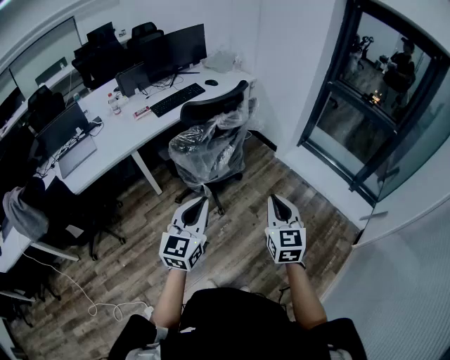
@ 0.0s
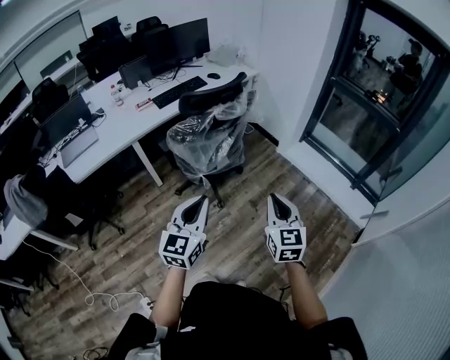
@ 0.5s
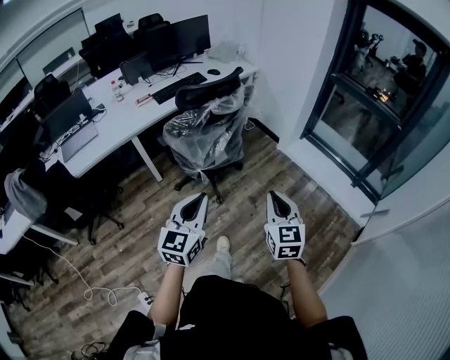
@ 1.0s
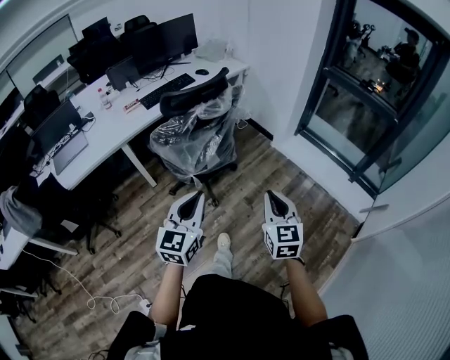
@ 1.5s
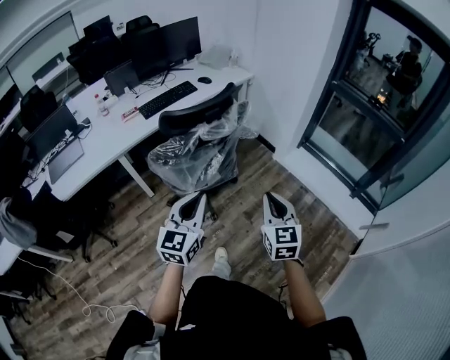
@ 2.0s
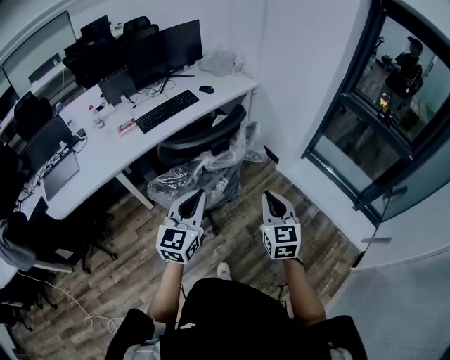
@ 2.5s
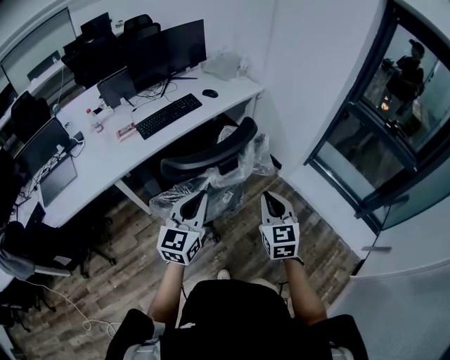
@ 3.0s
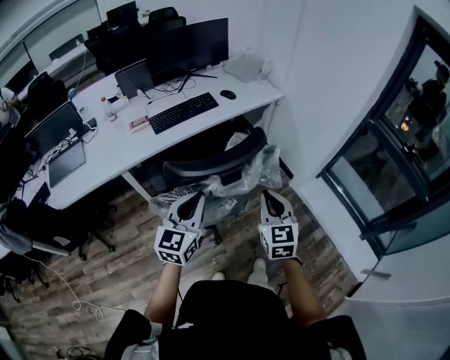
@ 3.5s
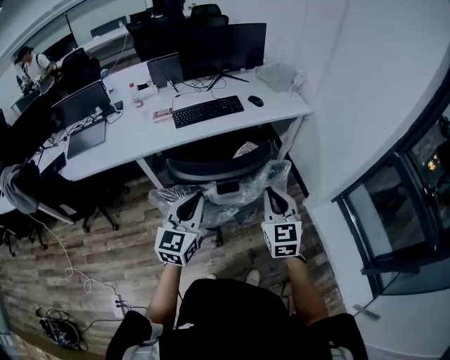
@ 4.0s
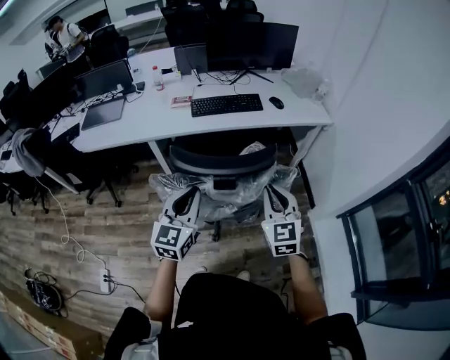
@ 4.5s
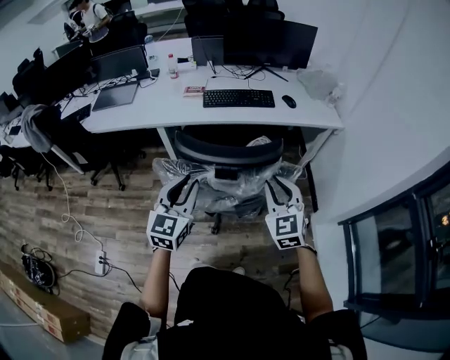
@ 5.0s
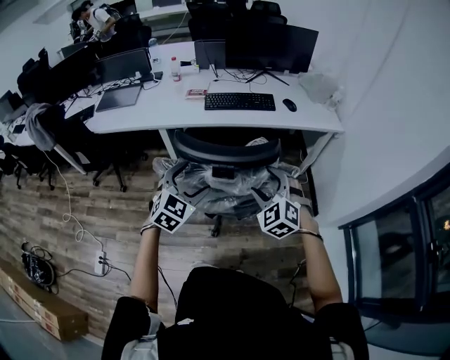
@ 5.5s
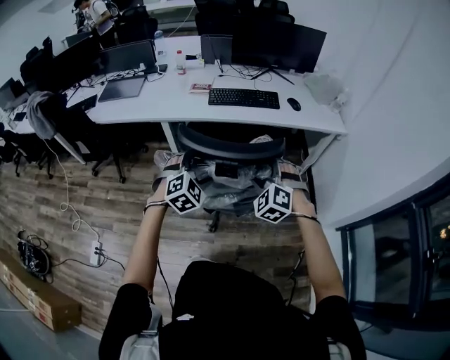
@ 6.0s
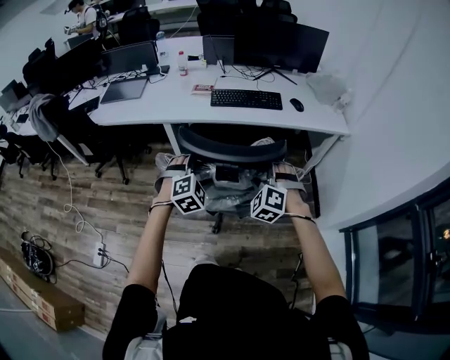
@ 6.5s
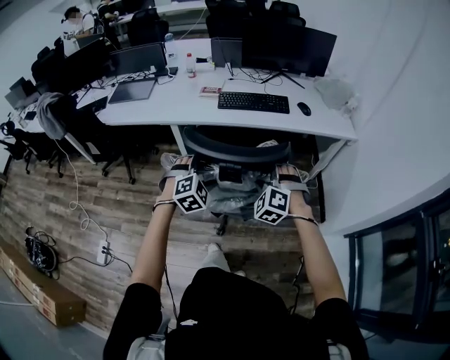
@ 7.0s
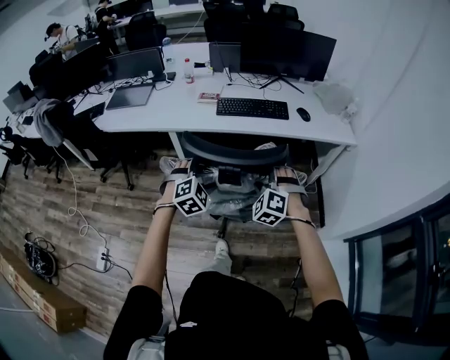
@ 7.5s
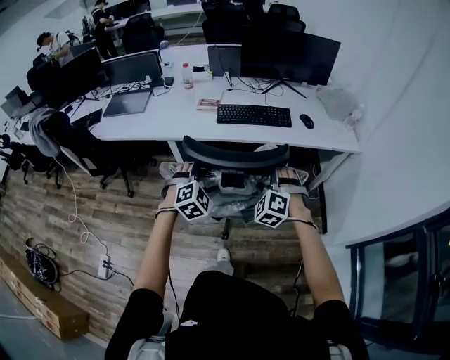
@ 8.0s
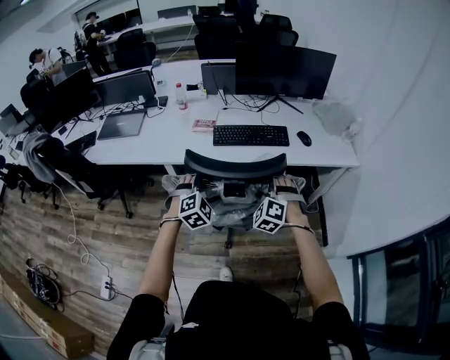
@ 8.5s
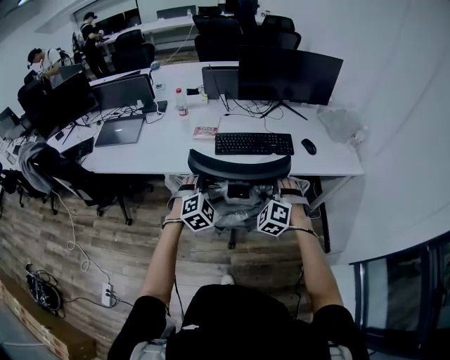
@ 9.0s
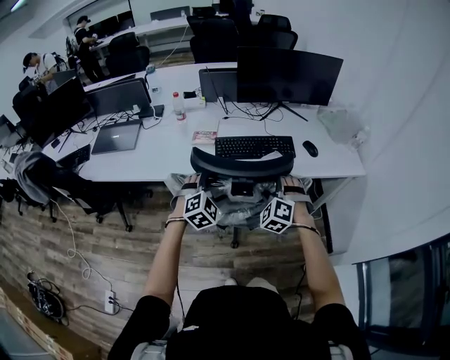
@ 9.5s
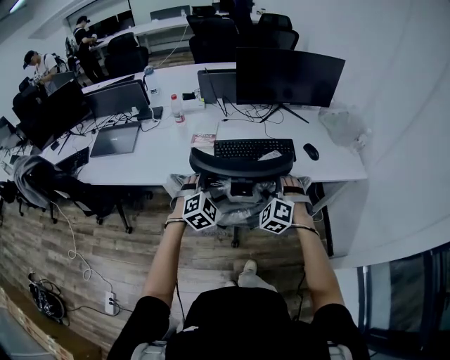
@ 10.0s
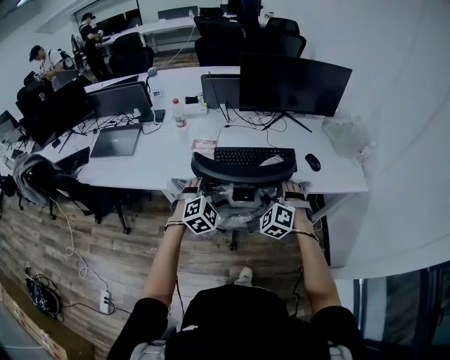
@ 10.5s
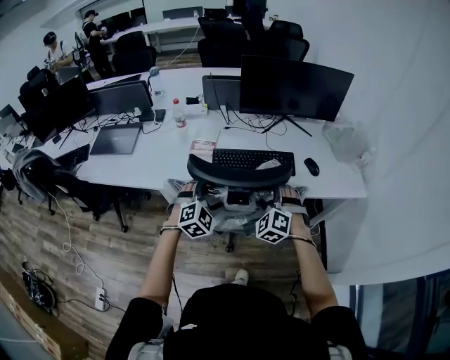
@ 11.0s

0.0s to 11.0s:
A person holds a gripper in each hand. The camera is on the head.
0.0s to 2.0s: The right gripper travels forward by about 15 cm. The left gripper goes approximately 15 cm forward and to the right.
2.0s to 3.5s: The grippers both shift forward by approximately 25 cm.
3.5s to 5.5s: The left gripper is displaced downward by about 5 cm, changes its angle by approximately 40 degrees, and opens up; the right gripper moves about 10 cm, changes its angle by some 60 degrees, and opens.
5.5s to 7.5s: The left gripper goes some 10 cm forward and downward, and swivels roughly 20 degrees; the right gripper shifts some 10 cm forward.
7.5s to 9.0s: The grippers both shift forward by roughly 20 cm.
9.0s to 11.0s: The grippers both shift forward by some 10 cm.

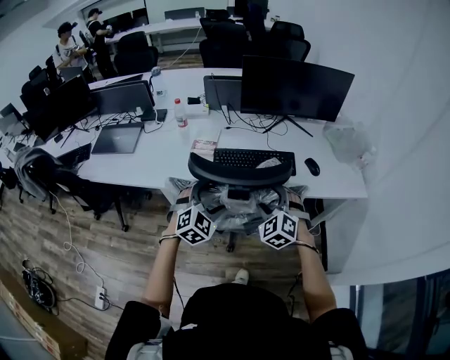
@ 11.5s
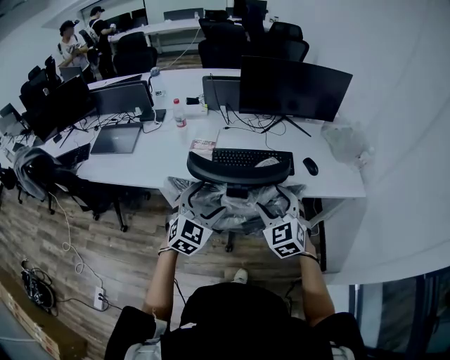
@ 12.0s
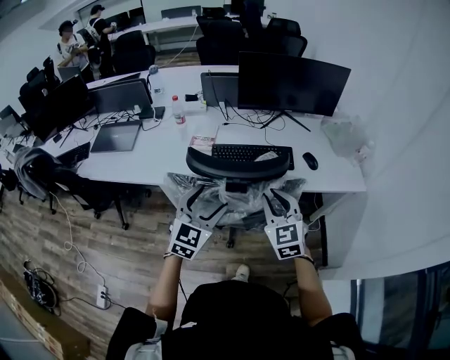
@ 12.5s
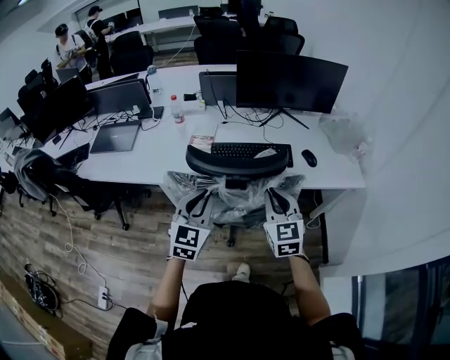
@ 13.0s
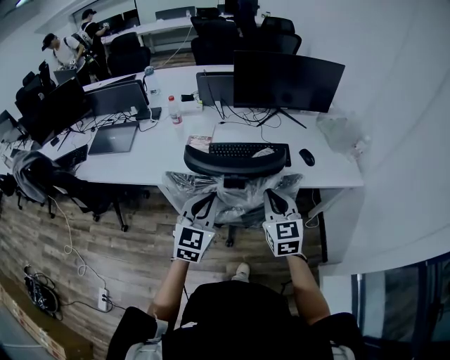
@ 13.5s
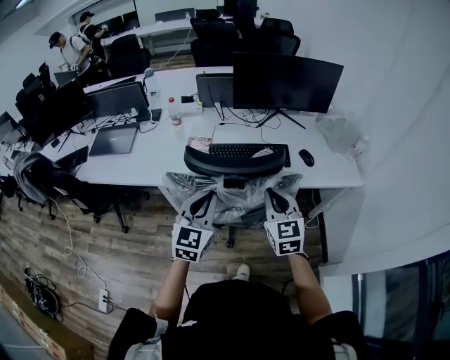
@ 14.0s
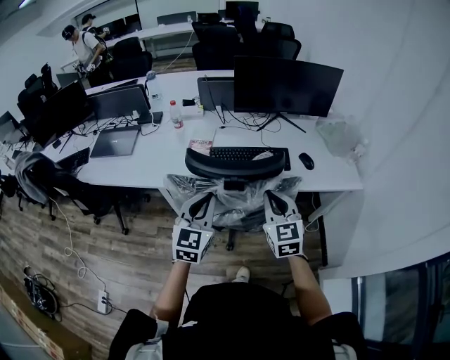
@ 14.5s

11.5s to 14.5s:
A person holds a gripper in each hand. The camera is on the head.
11.5s to 13.0s: The right gripper heads upward, covering some 5 cm, turns by some 40 degrees, and closes; the left gripper heads upward and backward, covering some 10 cm, turns by some 30 degrees, and closes.
13.0s to 14.5s: The grippers move only a little.

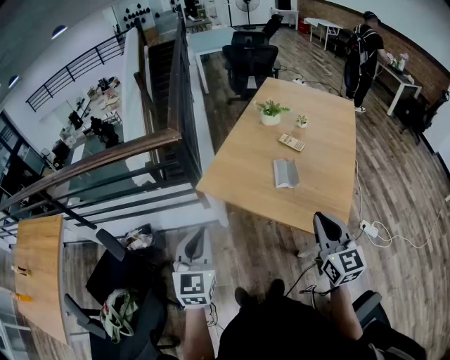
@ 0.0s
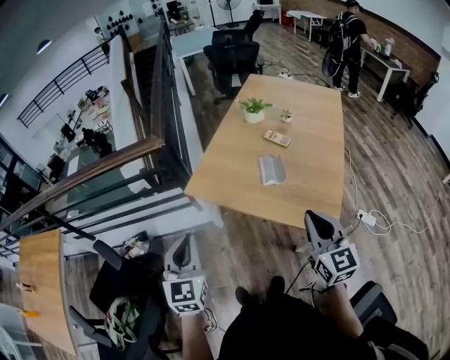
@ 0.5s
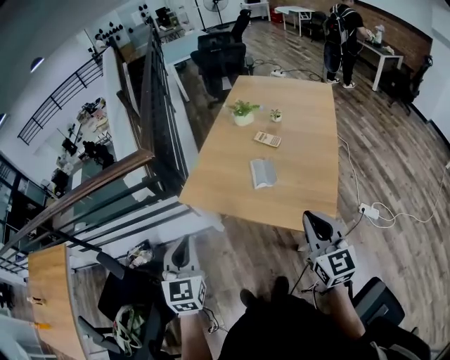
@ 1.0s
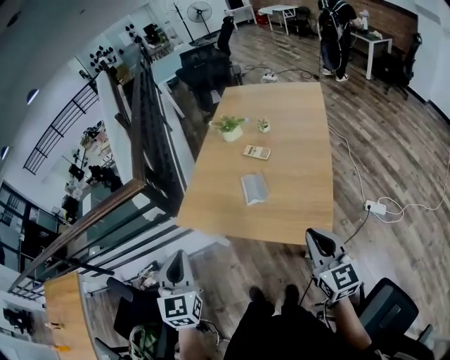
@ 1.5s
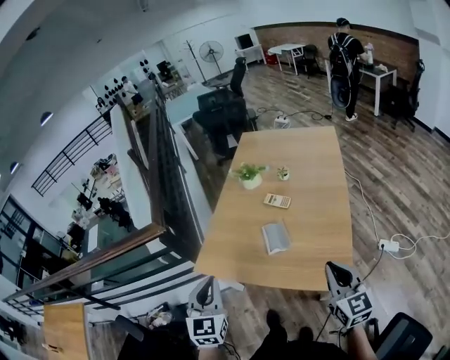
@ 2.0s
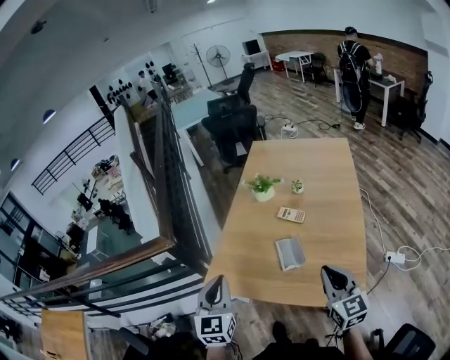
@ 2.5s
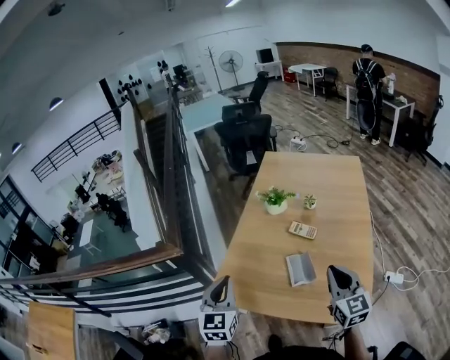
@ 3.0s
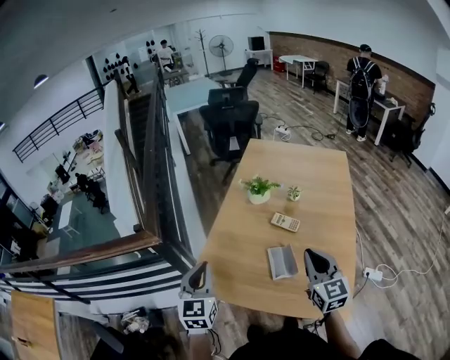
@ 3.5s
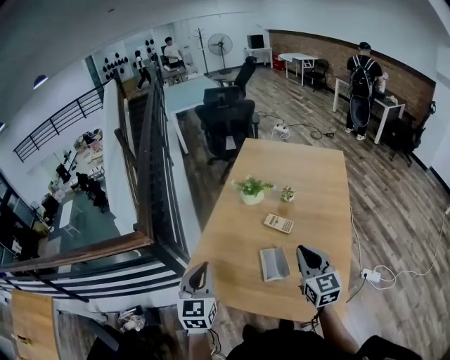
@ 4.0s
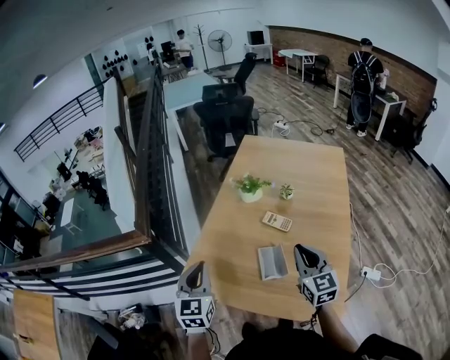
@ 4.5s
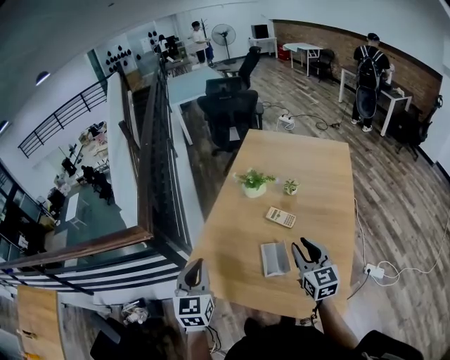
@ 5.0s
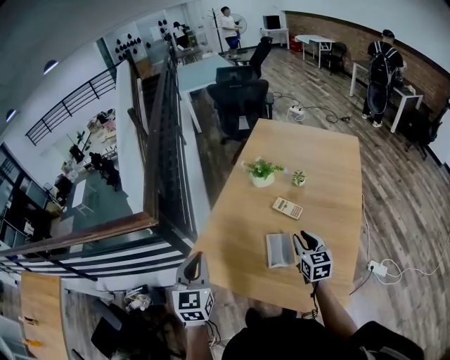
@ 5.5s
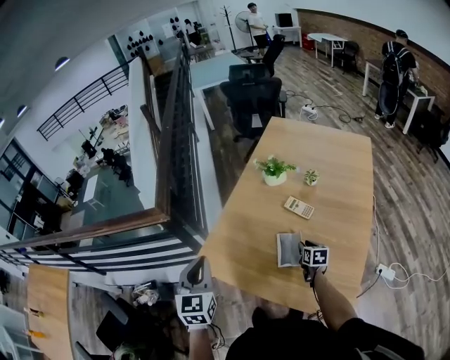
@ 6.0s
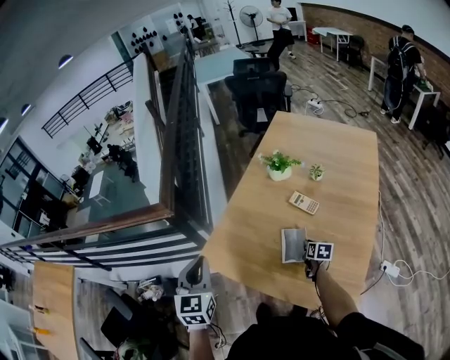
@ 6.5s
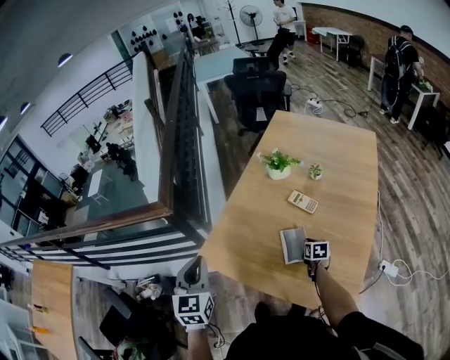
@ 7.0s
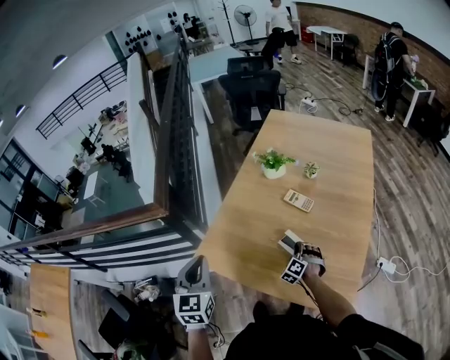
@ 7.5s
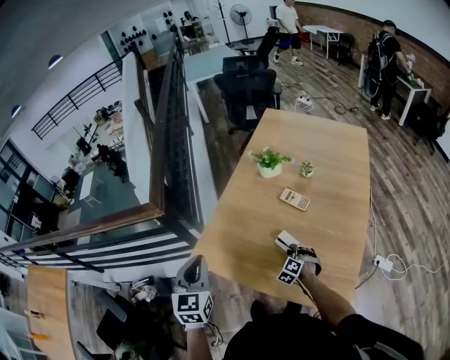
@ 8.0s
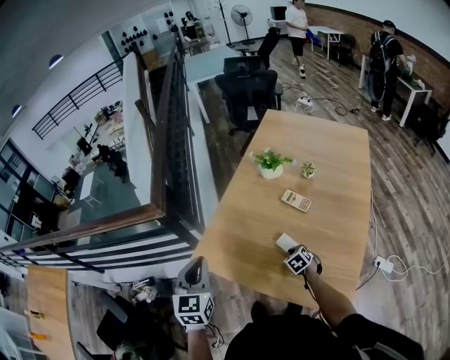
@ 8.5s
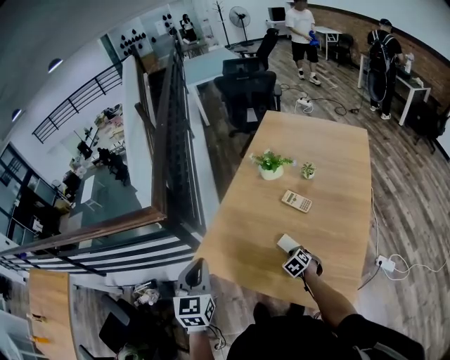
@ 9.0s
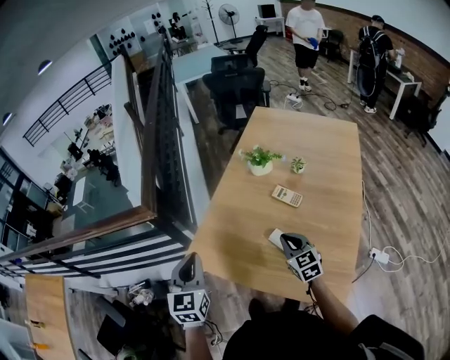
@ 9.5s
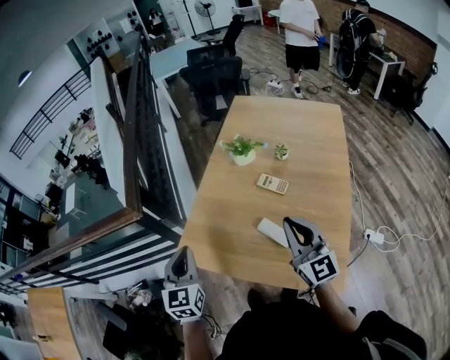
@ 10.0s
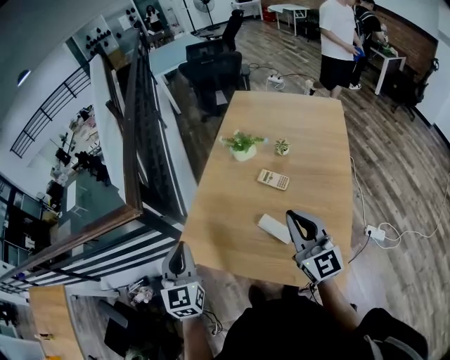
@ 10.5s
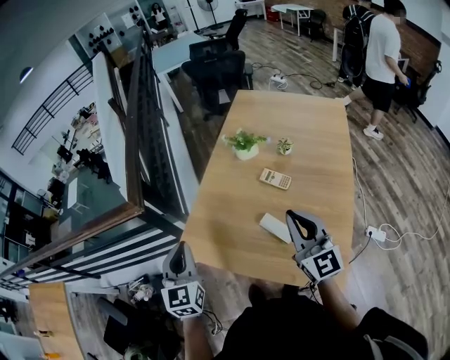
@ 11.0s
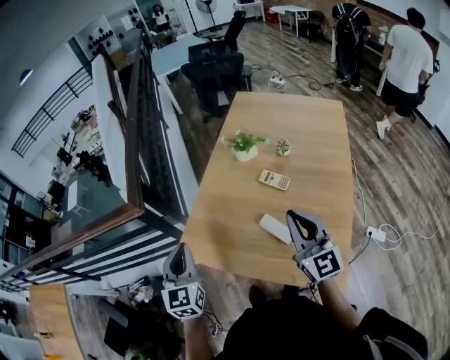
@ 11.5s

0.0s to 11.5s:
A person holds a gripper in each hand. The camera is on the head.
0.0s to 2.0s: The left gripper heads forward and to the right, covering about 20 cm, while the right gripper shifts some 15 cm to the right and forward.
2.0s to 4.0s: Both grippers travel together forward, some 20 cm.
4.0s to 6.0s: The left gripper ends up some 5 cm from where it was; the right gripper goes about 30 cm downward, tips its fingers downward by about 30 degrees, and opens.
6.0s to 7.5s: The right gripper moves roughly 5 cm, and twists some 80 degrees counterclockwise, seen from behind.
7.5s to 9.5s: The right gripper shifts about 15 cm upward, and swivels about 60 degrees.
9.5s to 11.5s: The right gripper moves upward, some 15 cm, and changes its angle by about 30 degrees.

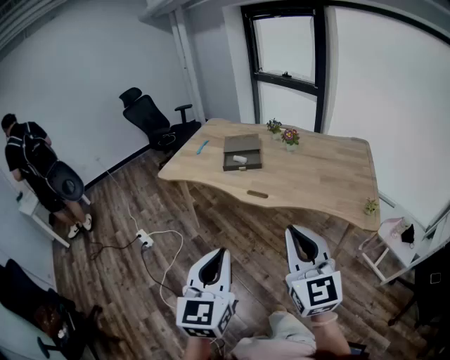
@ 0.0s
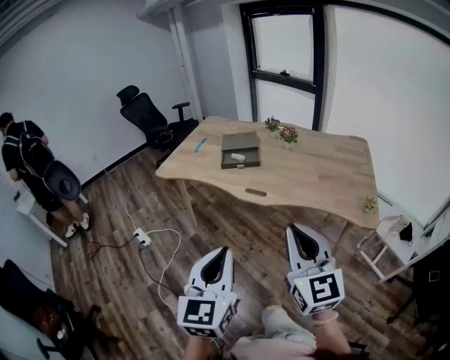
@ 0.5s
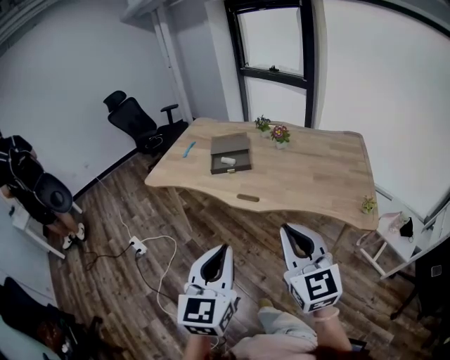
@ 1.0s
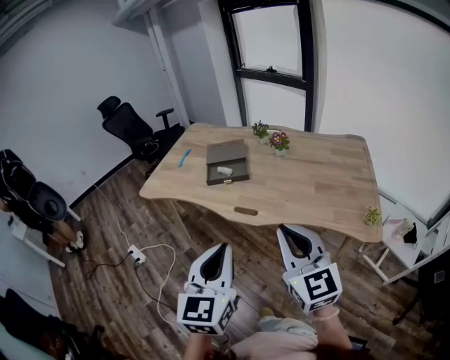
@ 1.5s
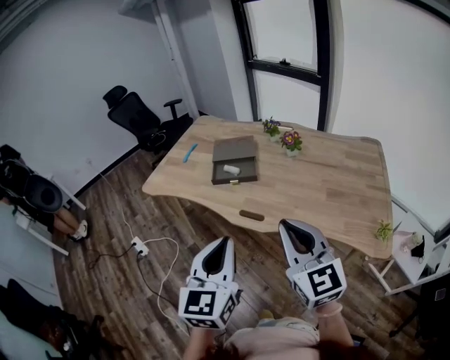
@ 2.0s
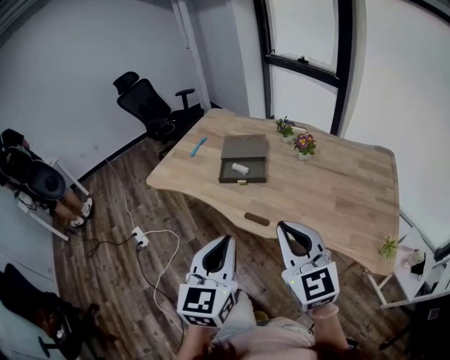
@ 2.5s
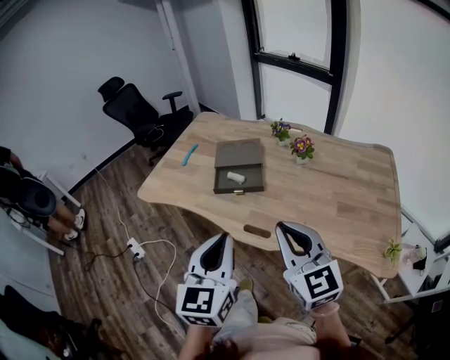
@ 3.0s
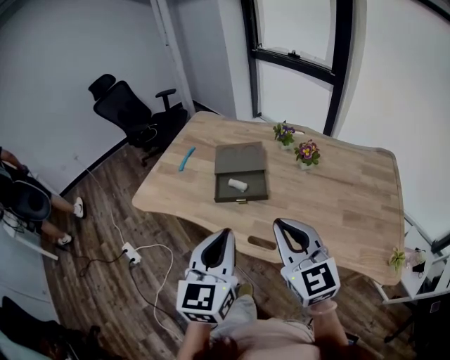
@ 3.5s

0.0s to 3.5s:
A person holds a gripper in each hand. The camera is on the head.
0.0s to 2.0s: Both grippers move forward, some 20 cm.
2.0s to 3.5s: The two grippers go about 20 cm forward.
